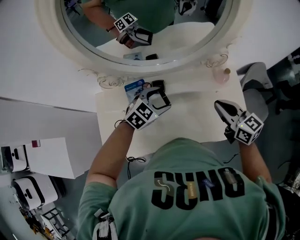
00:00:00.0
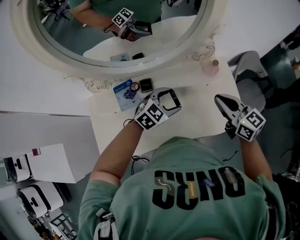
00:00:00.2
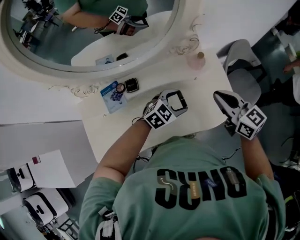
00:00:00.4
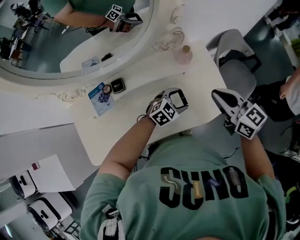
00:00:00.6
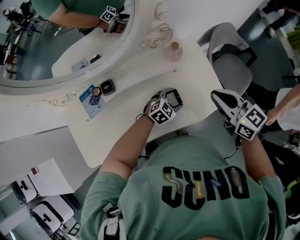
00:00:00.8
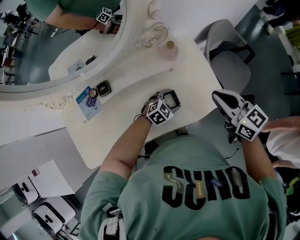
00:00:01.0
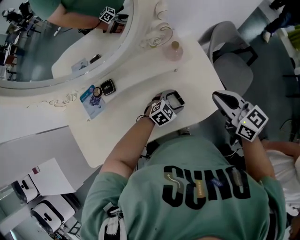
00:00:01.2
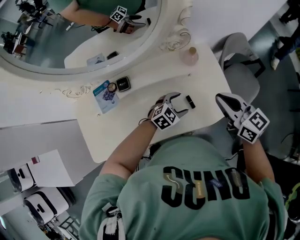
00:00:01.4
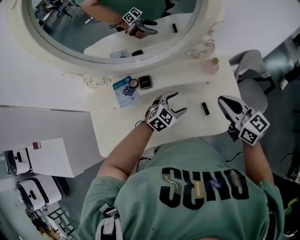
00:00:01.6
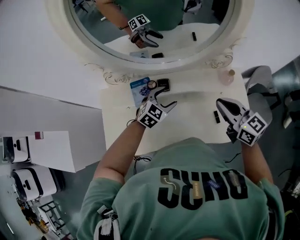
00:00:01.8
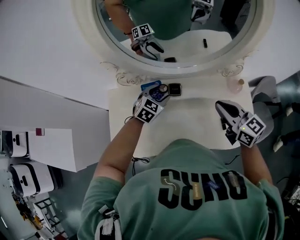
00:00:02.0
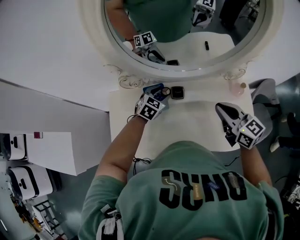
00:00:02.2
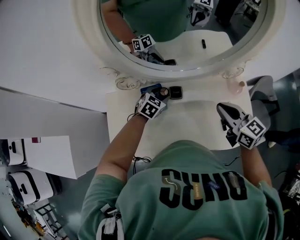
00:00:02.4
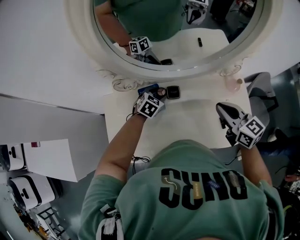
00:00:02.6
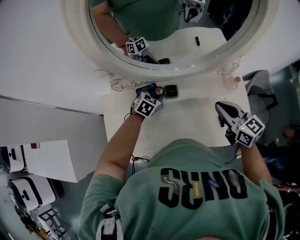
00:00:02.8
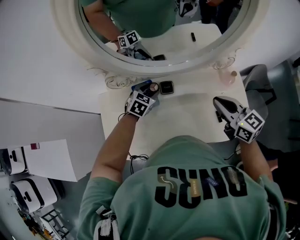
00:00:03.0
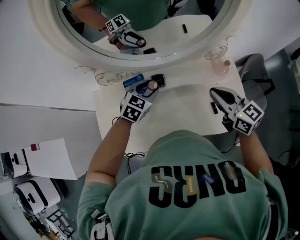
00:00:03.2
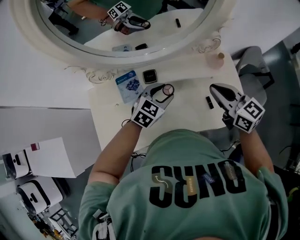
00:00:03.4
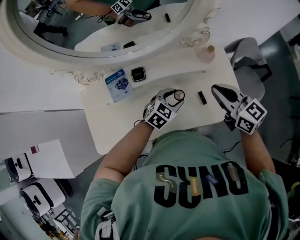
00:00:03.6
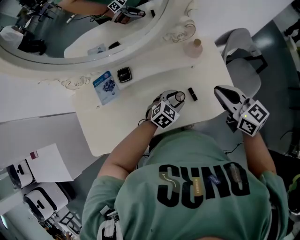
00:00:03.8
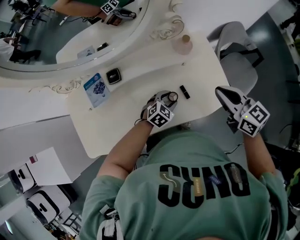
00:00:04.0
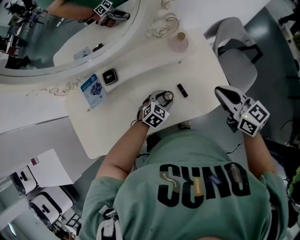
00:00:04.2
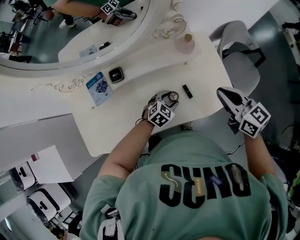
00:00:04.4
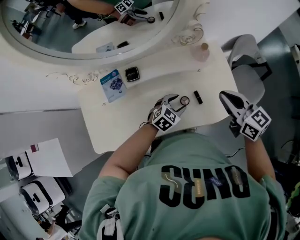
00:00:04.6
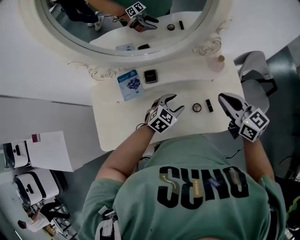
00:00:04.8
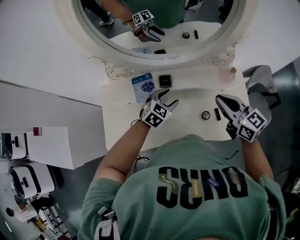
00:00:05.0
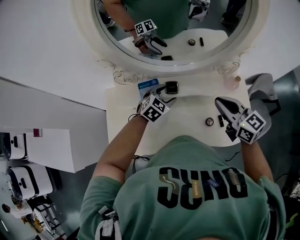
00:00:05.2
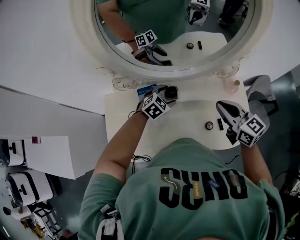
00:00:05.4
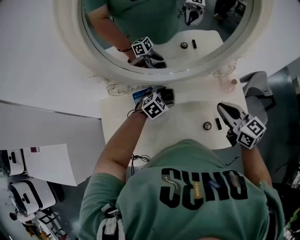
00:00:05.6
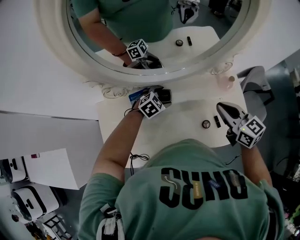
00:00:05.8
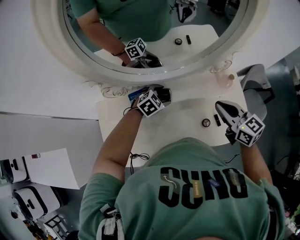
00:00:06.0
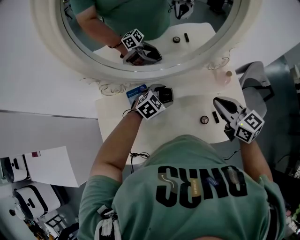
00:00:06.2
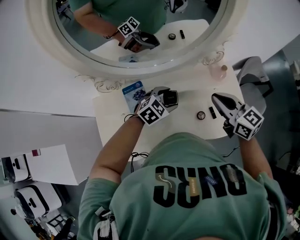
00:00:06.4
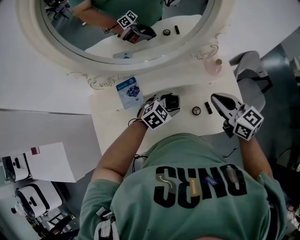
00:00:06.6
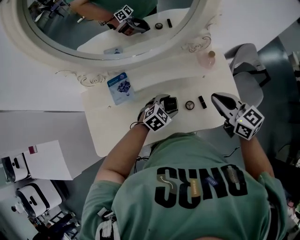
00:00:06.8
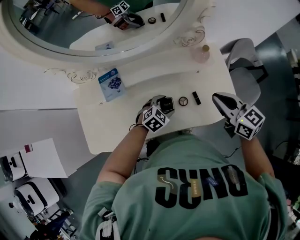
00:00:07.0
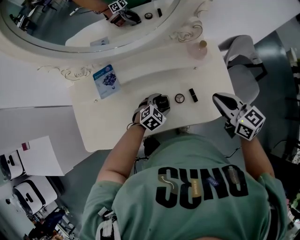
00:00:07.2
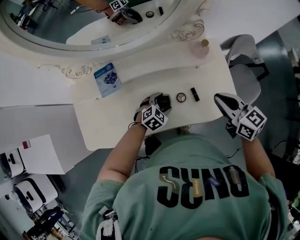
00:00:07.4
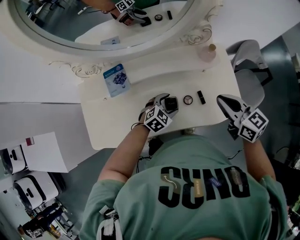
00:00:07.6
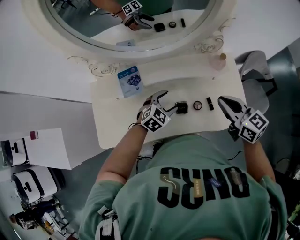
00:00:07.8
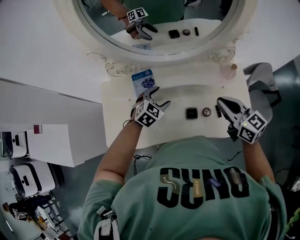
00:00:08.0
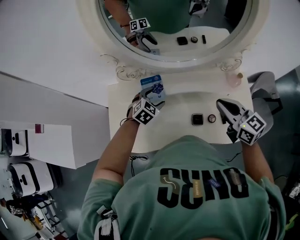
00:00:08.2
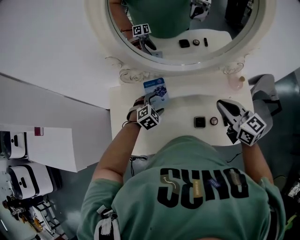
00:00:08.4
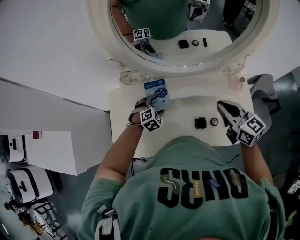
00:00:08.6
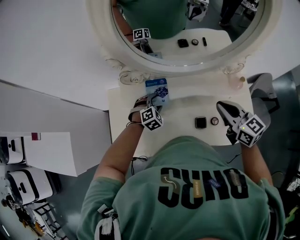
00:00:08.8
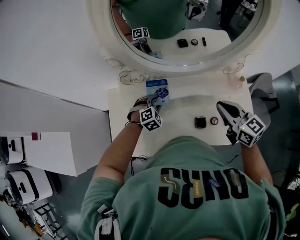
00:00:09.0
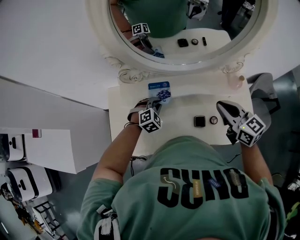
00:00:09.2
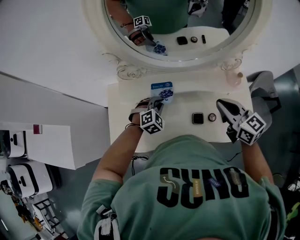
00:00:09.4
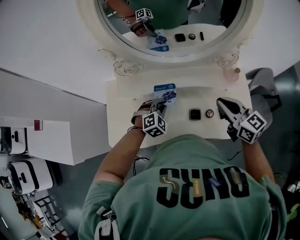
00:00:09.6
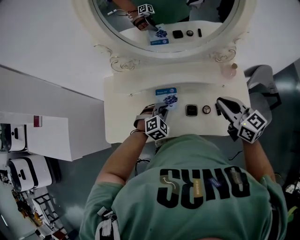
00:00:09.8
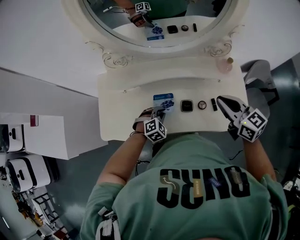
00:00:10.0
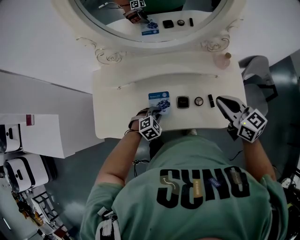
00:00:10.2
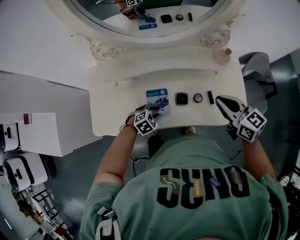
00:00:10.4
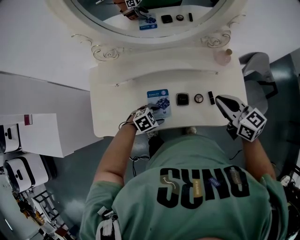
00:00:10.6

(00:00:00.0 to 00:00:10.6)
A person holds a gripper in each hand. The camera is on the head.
00:00:00.0 - 00:00:01.6: The right gripper goes about 5 cm to the right. The left gripper heads to the right and downward, covering roughly 15 cm.
00:00:01.6 - 00:00:03.0: The right gripper travels to the left by roughly 15 cm. Meanwhile the left gripper moves to the left and forward, some 25 cm, turns by some 30 degrees, and closes up.
00:00:03.0 - 00:00:04.6: The left gripper travels to the right and backward by roughly 35 cm, and turns by some 20 degrees. The right gripper heads to the right, covering roughly 20 cm.
00:00:04.6 - 00:00:06.0: The right gripper moves to the left, about 15 cm. The left gripper travels to the left and forward by approximately 25 cm.
00:00:06.0 - 00:00:07.6: The right gripper is displaced to the right and backward by about 15 cm. The left gripper goes some 20 cm to the right and backward.
00:00:07.6 - 00:00:09.0: The right gripper shifts about 20 cm to the left and forward; the left gripper shifts about 30 cm to the left and forward, changes its angle by roughly 30 degrees, and closes its fingers.
00:00:09.0 - 00:00:10.6: The left gripper shifts by about 25 cm, turns by some 40 degrees, and closes and opens again. The right gripper ends up about 15 cm from where it was.

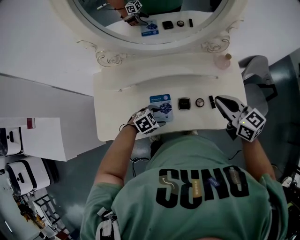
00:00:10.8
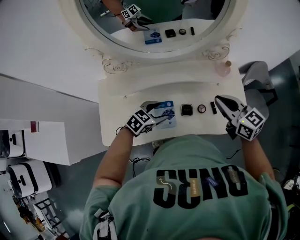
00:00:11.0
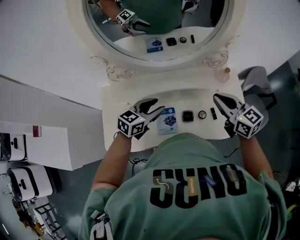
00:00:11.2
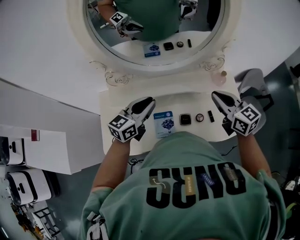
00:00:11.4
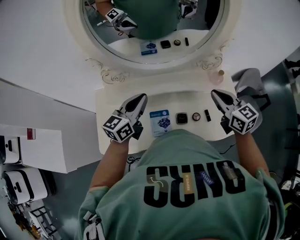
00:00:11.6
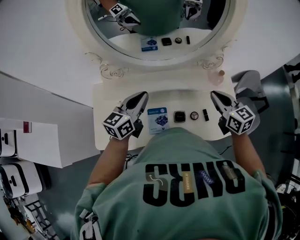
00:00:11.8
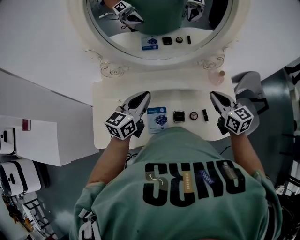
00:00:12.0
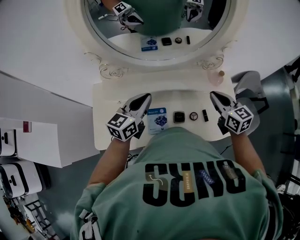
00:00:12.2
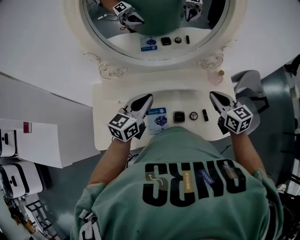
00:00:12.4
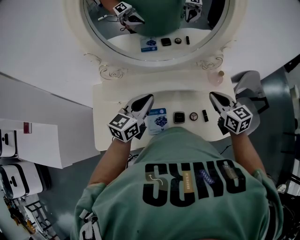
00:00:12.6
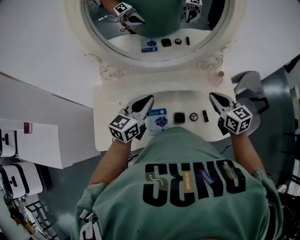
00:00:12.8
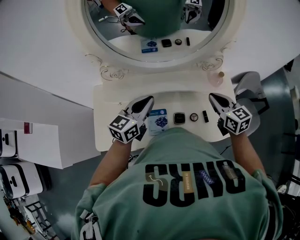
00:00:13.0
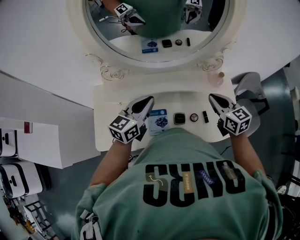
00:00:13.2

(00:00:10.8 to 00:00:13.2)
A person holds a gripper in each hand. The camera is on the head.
00:00:10.8 - 00:00:12.0: The right gripper changes place by roughly 10 cm, while the left gripper shifts approximately 25 cm upward, tilts its fingers roughly 50 degrees upward, and closes.
00:00:12.0 - 00:00:13.2: There are only small adjustments of the grippers.

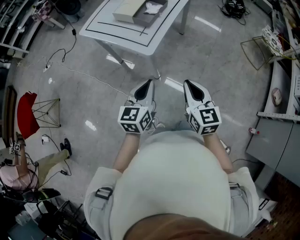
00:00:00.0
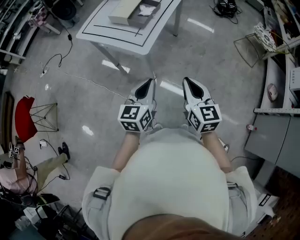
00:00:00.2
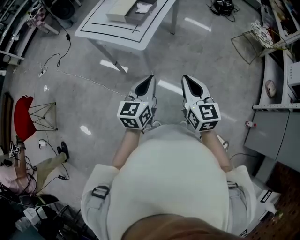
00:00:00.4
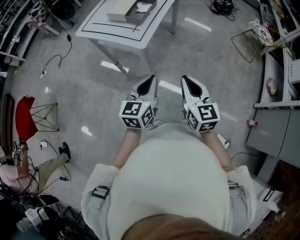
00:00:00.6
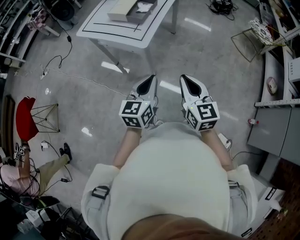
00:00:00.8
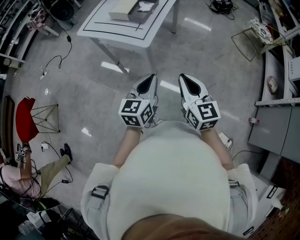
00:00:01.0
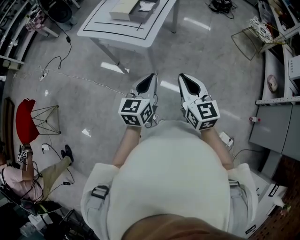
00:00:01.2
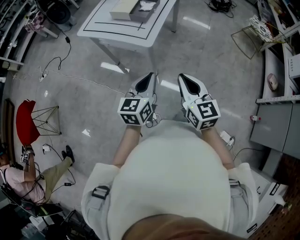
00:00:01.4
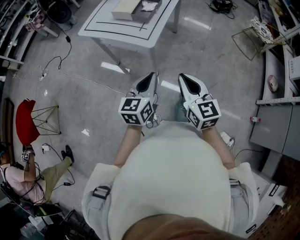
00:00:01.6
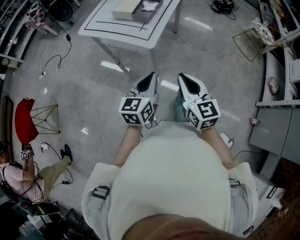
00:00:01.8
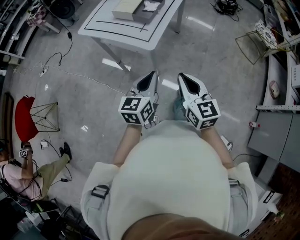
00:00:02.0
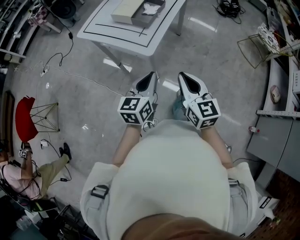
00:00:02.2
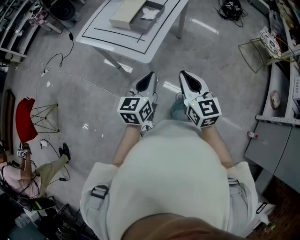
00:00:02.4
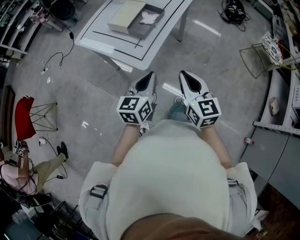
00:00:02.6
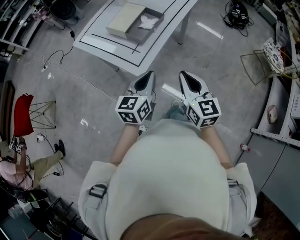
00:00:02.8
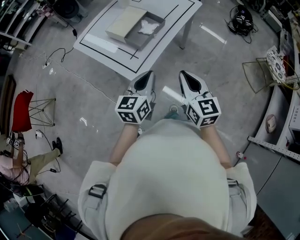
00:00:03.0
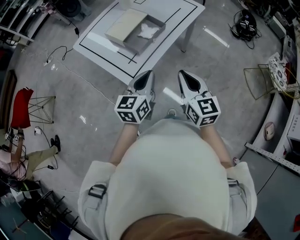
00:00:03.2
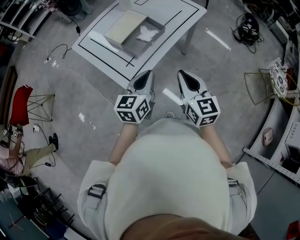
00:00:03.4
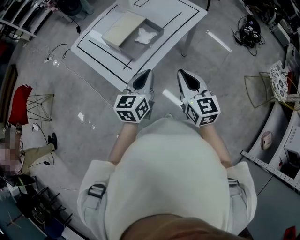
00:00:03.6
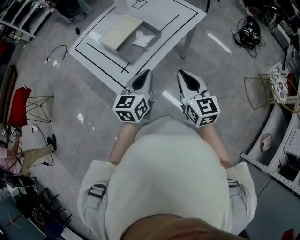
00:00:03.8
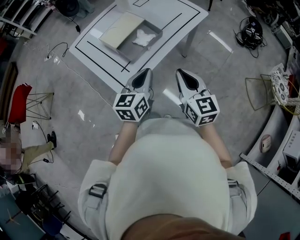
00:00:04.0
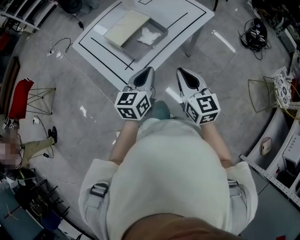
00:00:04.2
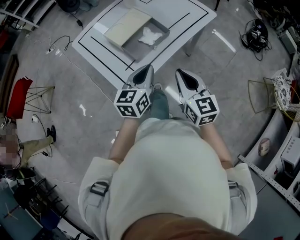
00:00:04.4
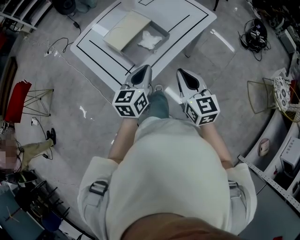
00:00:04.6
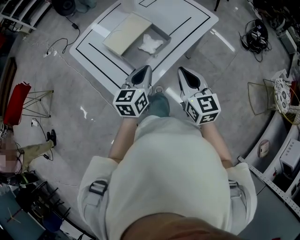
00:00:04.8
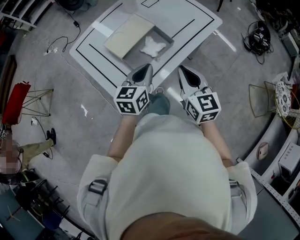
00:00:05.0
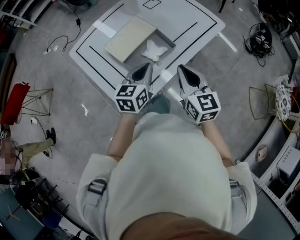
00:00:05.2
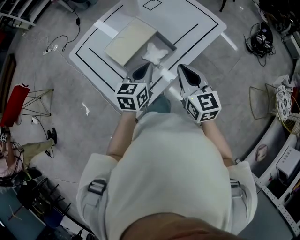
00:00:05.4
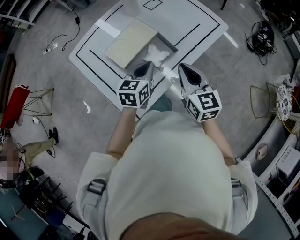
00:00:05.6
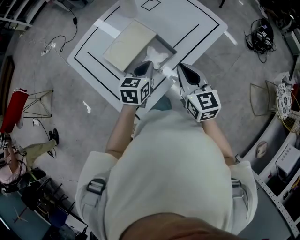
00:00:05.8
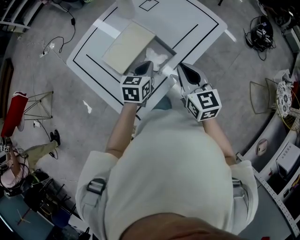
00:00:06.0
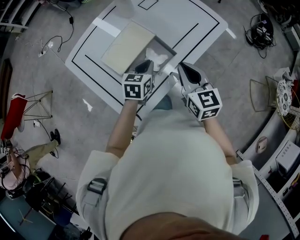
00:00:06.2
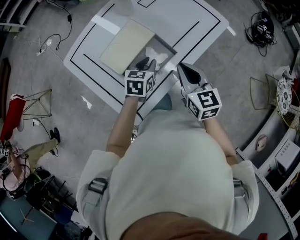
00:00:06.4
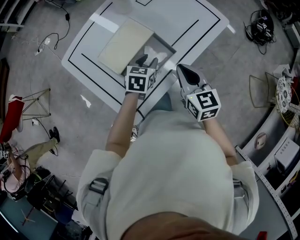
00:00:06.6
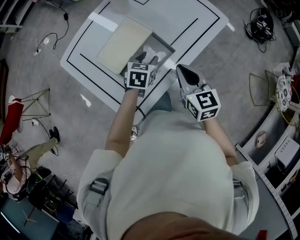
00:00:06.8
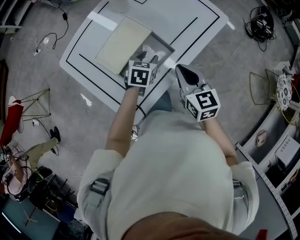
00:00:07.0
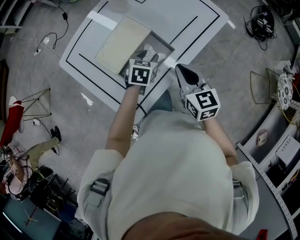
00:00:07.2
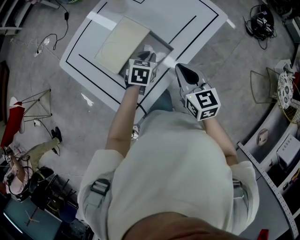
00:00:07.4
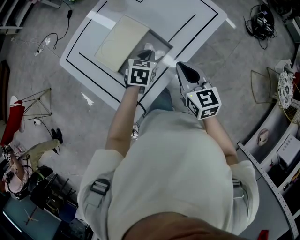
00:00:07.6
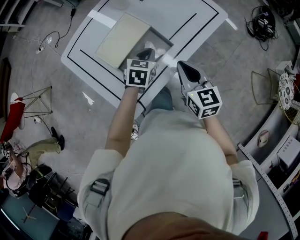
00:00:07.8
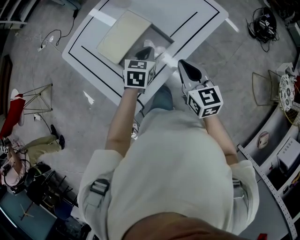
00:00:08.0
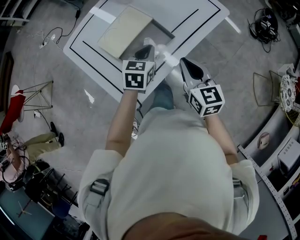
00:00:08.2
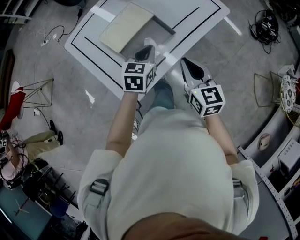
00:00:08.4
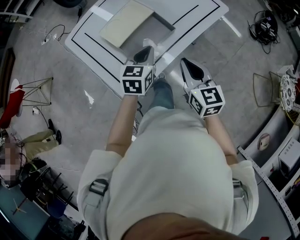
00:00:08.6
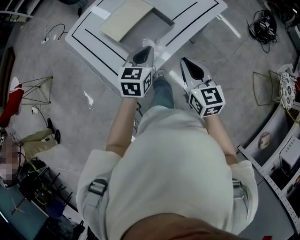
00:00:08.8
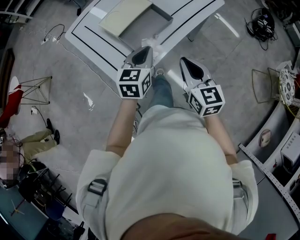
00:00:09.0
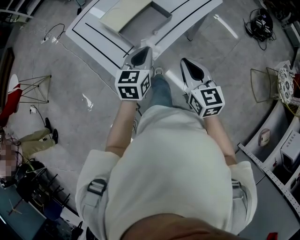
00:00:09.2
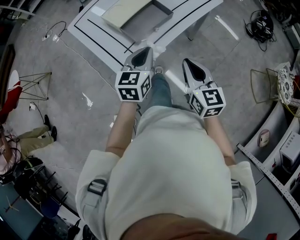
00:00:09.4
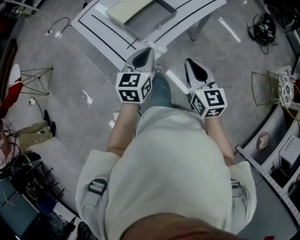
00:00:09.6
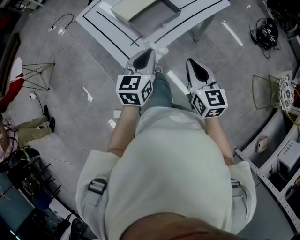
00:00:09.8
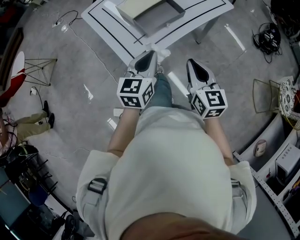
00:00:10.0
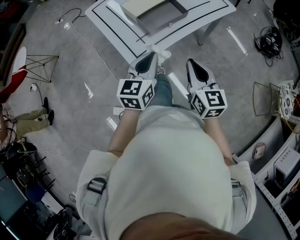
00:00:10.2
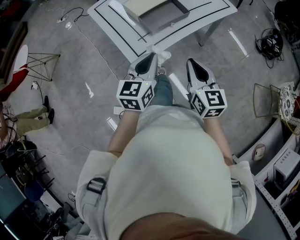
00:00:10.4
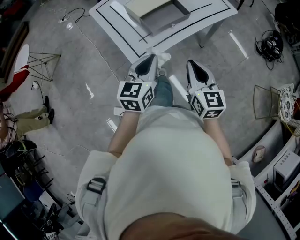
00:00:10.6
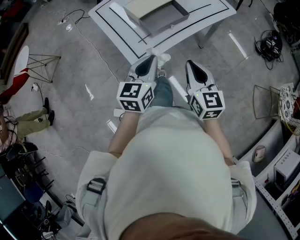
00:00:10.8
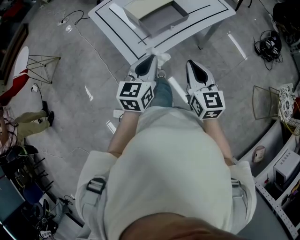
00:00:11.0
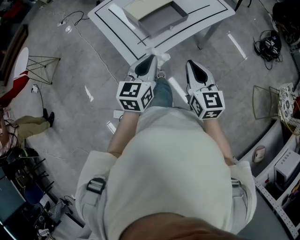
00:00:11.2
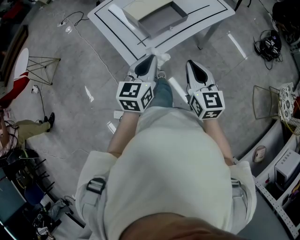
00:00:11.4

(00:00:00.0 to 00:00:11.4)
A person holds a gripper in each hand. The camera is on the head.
00:00:00.0 - 00:00:01.4: The grippers both shift backward by about 5 cm.
00:00:01.4 - 00:00:02.8: Both grippers travel together forward, some 20 cm.
00:00:02.8 - 00:00:04.2: The right gripper travels forward by approximately 15 cm; the left gripper shifts roughly 15 cm forward and to the right.
00:00:04.2 - 00:00:05.6: The two grippers go roughly 15 cm forward.
00:00:05.6 - 00:00:07.2: The right gripper shifts by approximately 5 cm. Meanwhile the left gripper travels downward and forward by some 10 cm, swivels some 20 degrees, and opens.
00:00:07.2 - 00:00:08.6: The left gripper is displaced backward and upward by approximately 15 cm, rotates approximately 20 degrees, and closes. The right gripper moves backward, some 10 cm.
00:00:08.6 - 00:00:10.0: Both grippers travel together backward, about 15 cm.
00:00:10.0 - 00:00:11.4: The grippers make only small movements.
